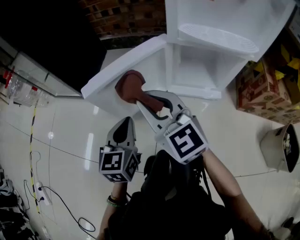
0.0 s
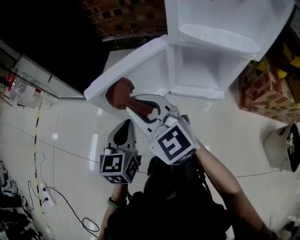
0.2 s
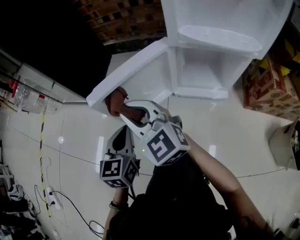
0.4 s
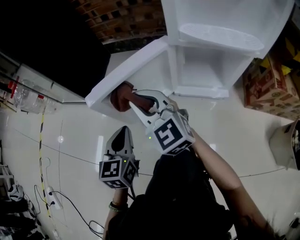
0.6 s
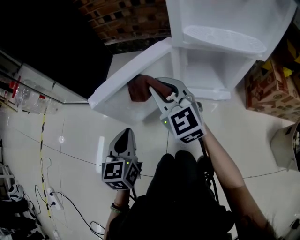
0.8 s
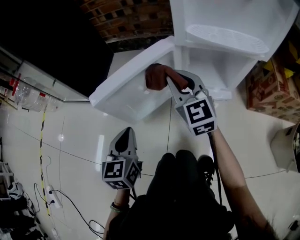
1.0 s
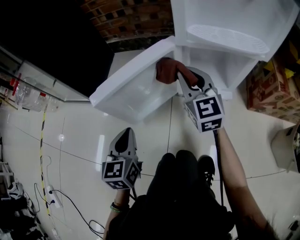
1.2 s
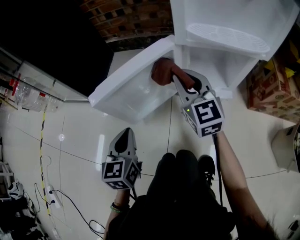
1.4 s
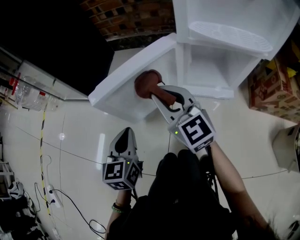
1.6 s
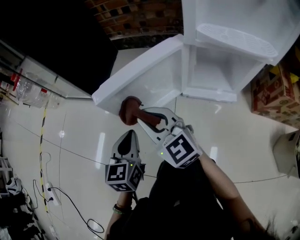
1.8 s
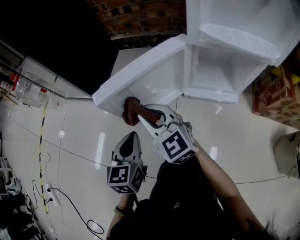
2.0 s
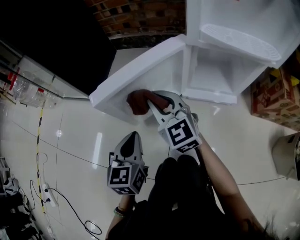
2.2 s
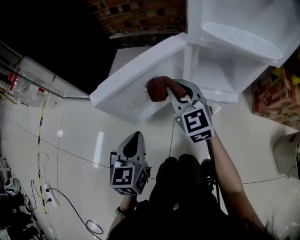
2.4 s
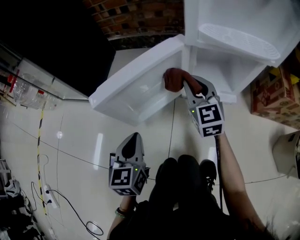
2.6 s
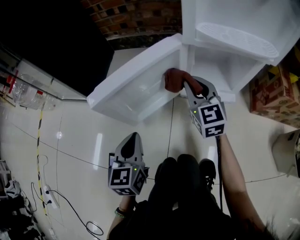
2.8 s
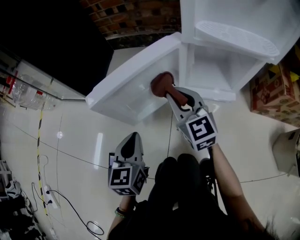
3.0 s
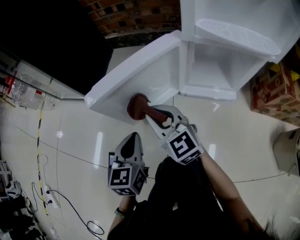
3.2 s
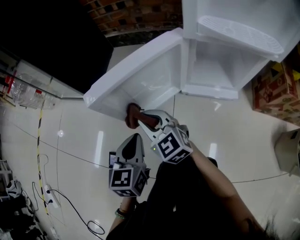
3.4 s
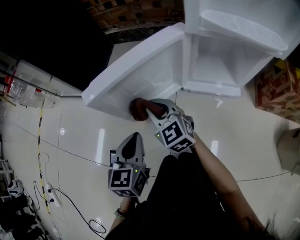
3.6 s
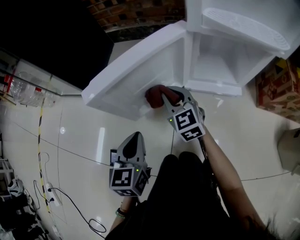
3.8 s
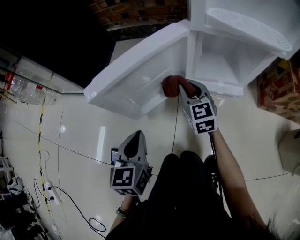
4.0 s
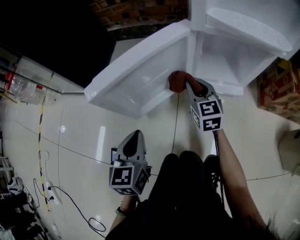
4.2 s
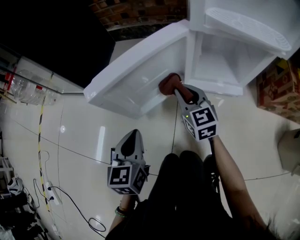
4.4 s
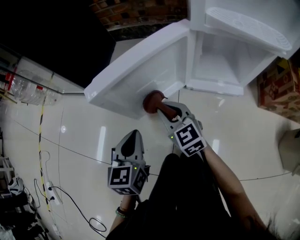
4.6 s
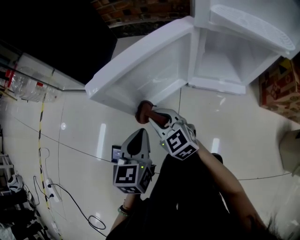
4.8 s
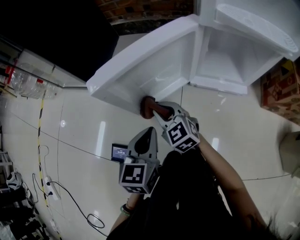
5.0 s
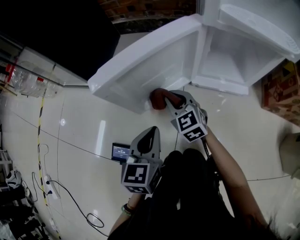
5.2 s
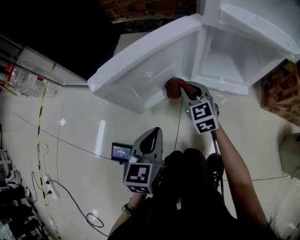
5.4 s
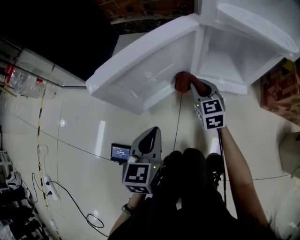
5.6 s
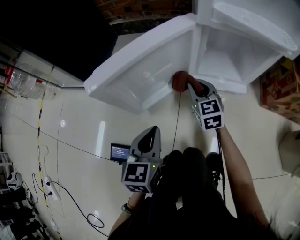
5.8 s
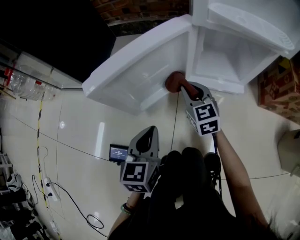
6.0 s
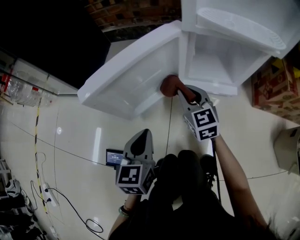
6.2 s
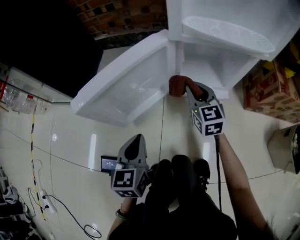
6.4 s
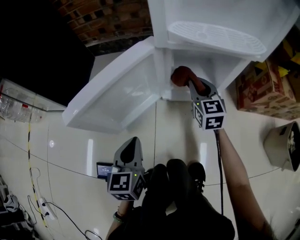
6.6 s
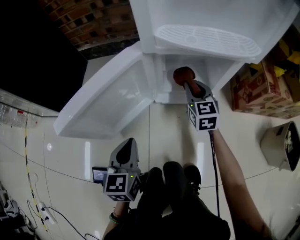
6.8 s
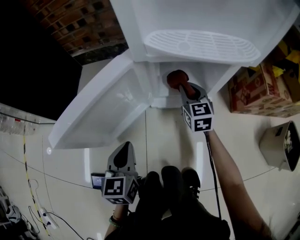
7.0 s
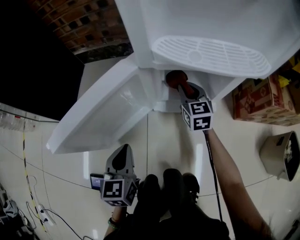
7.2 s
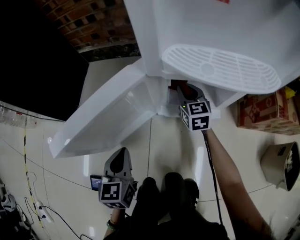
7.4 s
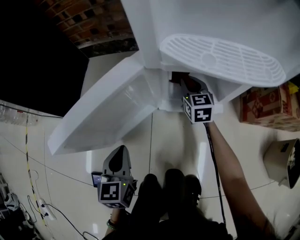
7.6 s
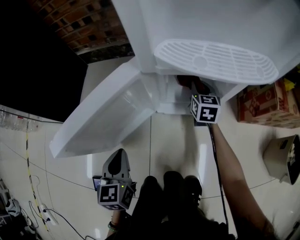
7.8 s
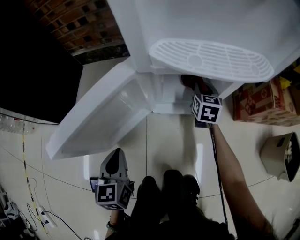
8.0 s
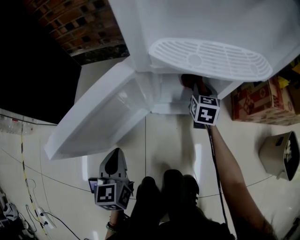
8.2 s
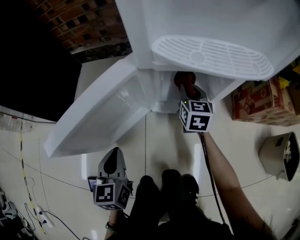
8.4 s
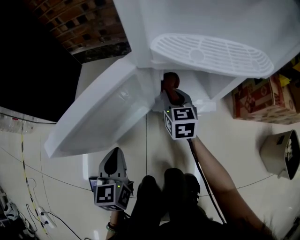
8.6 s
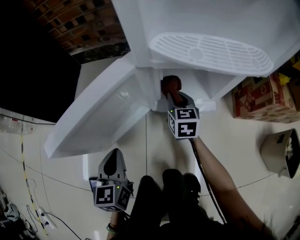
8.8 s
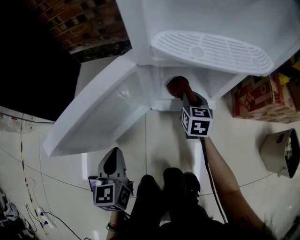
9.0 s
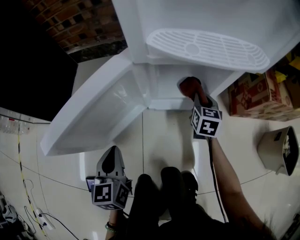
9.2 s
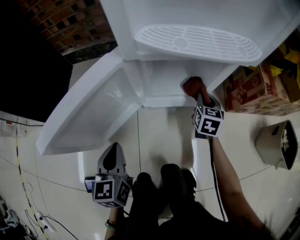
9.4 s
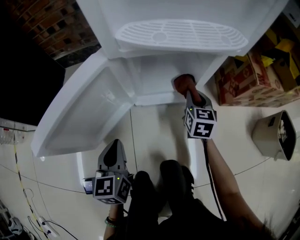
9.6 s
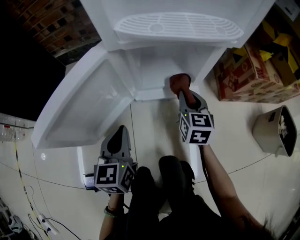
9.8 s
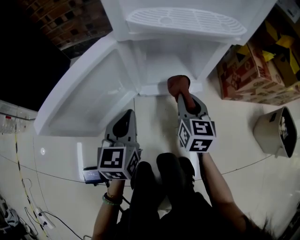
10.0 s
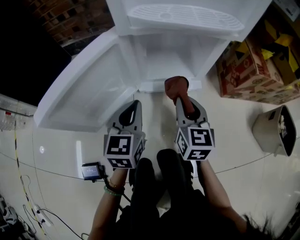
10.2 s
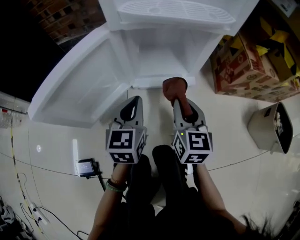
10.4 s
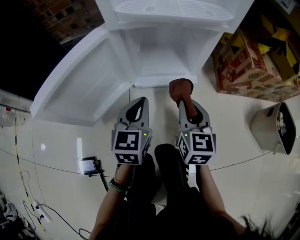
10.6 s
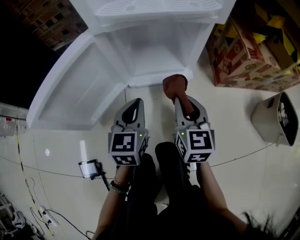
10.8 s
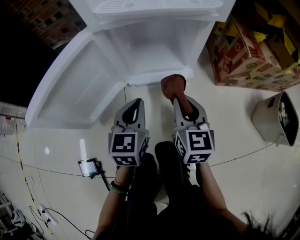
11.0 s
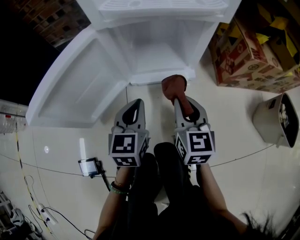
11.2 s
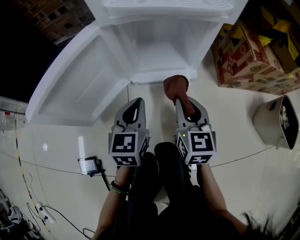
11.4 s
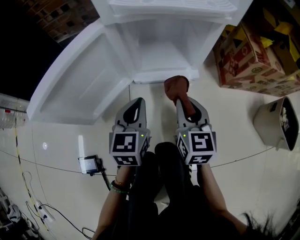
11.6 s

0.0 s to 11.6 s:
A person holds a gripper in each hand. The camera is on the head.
0.0 to 1.4 s: The right gripper heads to the right and forward, covering some 15 cm.
1.4 to 2.8 s: The right gripper moves downward, roughly 5 cm, and travels to the left and back again, approximately 15 cm each way.
2.8 to 4.4 s: The right gripper goes left and right, about 20 cm each way, reversing 2 times.
4.4 to 5.8 s: The left gripper goes about 5 cm to the right; the right gripper goes to the left and returns, about 15 cm each way.
5.8 to 7.2 s: The right gripper travels to the right and forward by approximately 15 cm, while the left gripper heads forward, covering about 5 cm.
7.2 to 8.8 s: The right gripper moves about 10 cm to the right and comes back.
8.8 to 10.2 s: The right gripper shifts approximately 20 cm backward, to the right and upward. Meanwhile the left gripper goes about 15 cm to the right and forward, and swivels approximately 20 degrees.
10.2 to 11.6 s: The grippers make only small movements.

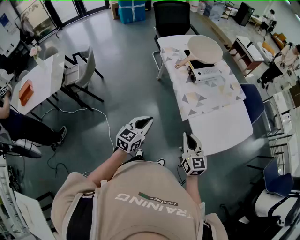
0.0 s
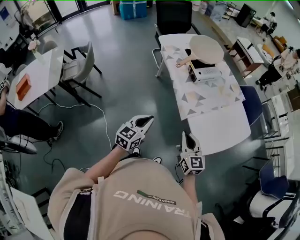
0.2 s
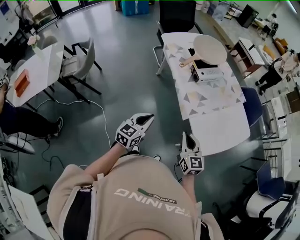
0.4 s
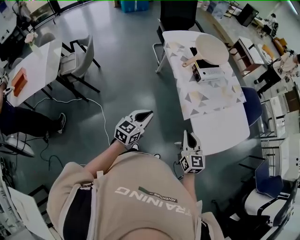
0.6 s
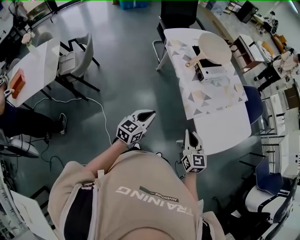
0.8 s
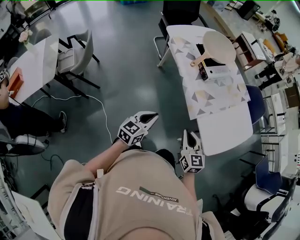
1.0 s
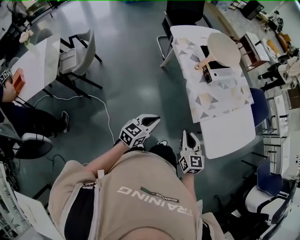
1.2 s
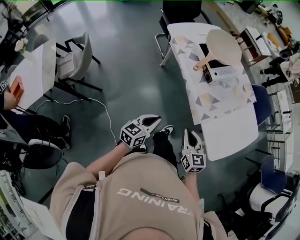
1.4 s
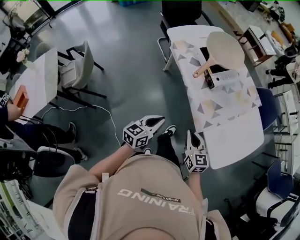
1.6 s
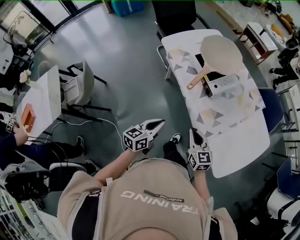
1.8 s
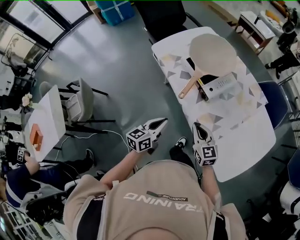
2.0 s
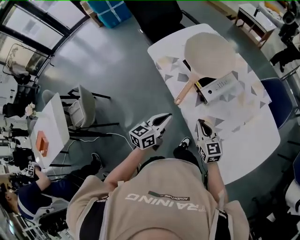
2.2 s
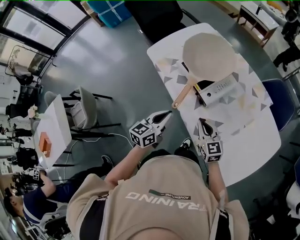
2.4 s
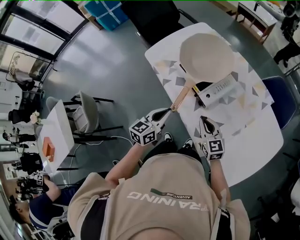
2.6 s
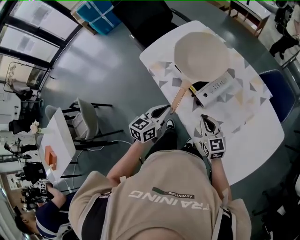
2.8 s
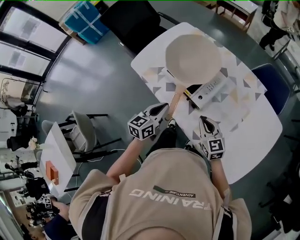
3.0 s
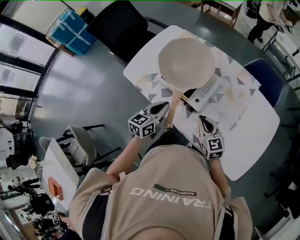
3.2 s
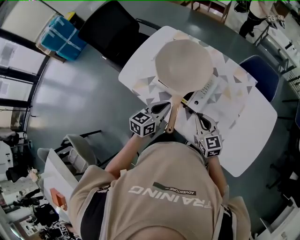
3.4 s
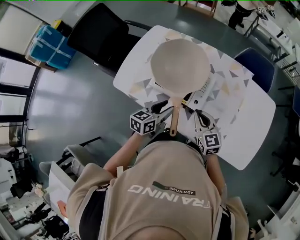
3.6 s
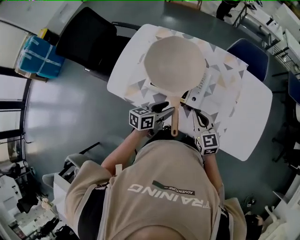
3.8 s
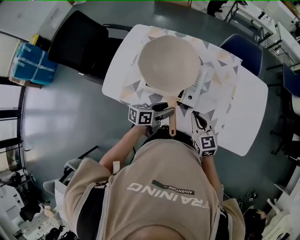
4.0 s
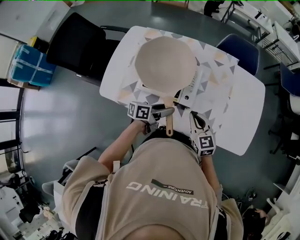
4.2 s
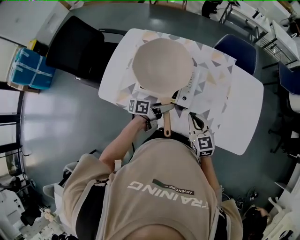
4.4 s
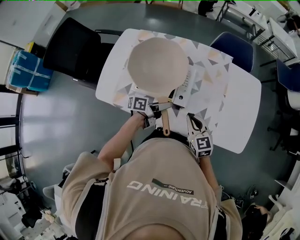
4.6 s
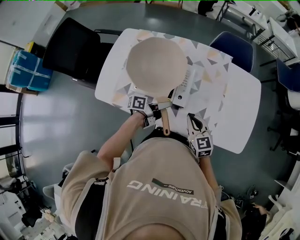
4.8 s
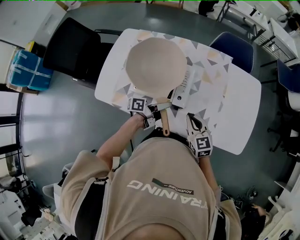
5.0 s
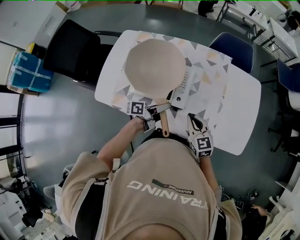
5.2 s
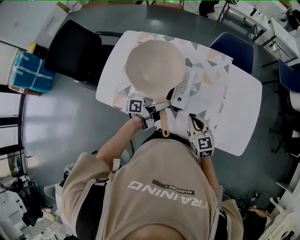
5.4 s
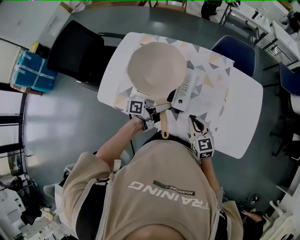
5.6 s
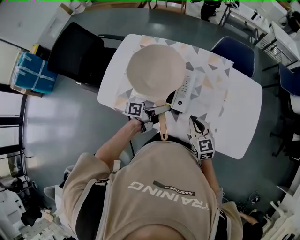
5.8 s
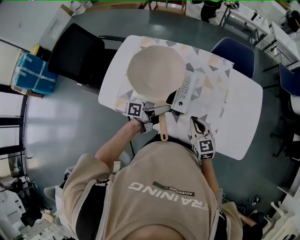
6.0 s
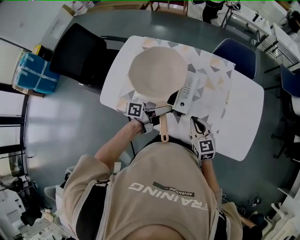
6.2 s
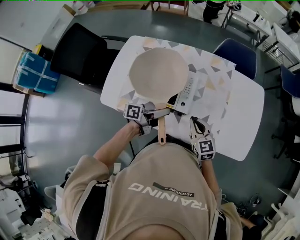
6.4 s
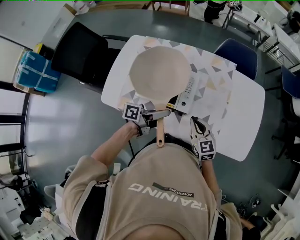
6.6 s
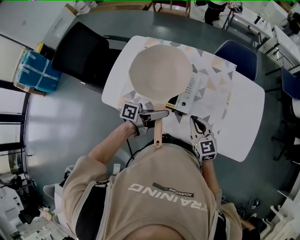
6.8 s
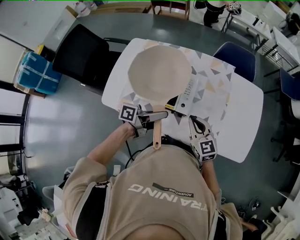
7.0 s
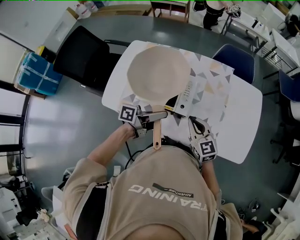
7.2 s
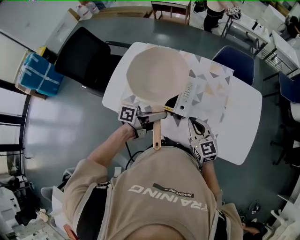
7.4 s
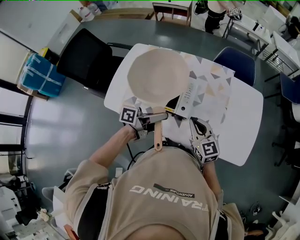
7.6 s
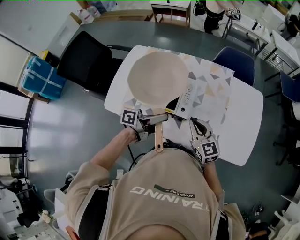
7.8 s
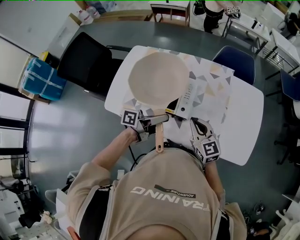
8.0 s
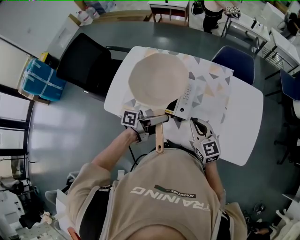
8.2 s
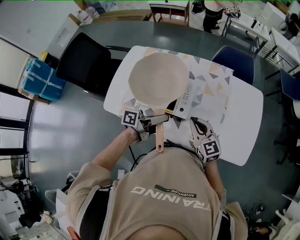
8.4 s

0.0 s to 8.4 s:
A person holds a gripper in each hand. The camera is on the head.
0.0 to 1.4 s: The grippers both shift to the left, forward and downward by some 15 cm.
1.4 to 2.8 s: Both grippers travel together forward, some 35 cm.
2.8 to 4.2 s: The right gripper shifts by approximately 5 cm, and turns by approximately 30 degrees. The left gripper shifts by some 15 cm, swivels roughly 60 degrees, and opens up.
4.2 to 5.6 s: The left gripper changes place by approximately 5 cm.
5.6 to 7.0 s: The left gripper is displaced upward by roughly 10 cm.
7.0 to 8.4 s: There are only small adjustments of the grippers.

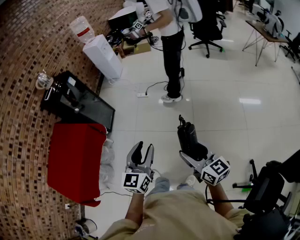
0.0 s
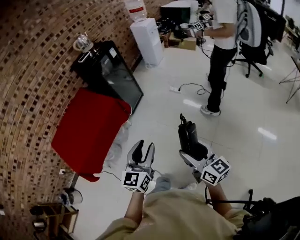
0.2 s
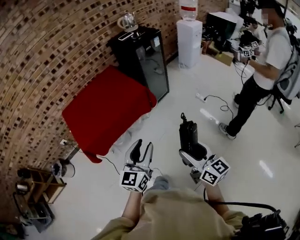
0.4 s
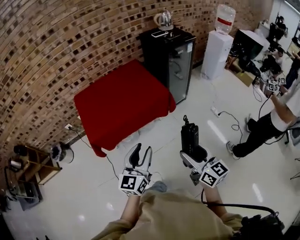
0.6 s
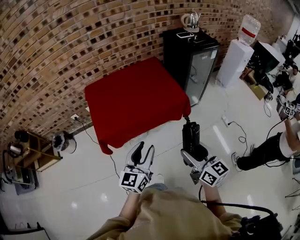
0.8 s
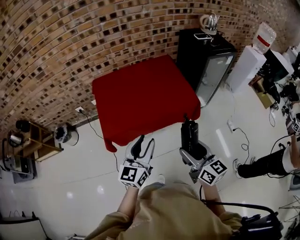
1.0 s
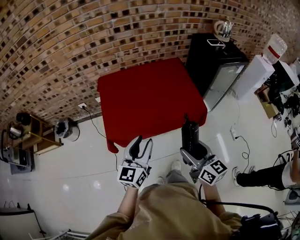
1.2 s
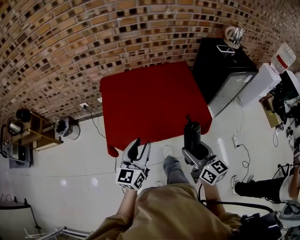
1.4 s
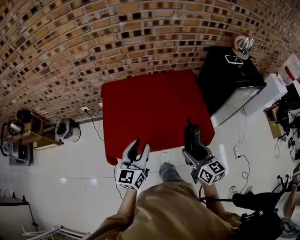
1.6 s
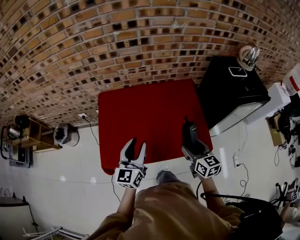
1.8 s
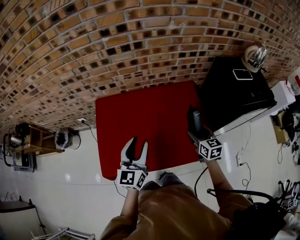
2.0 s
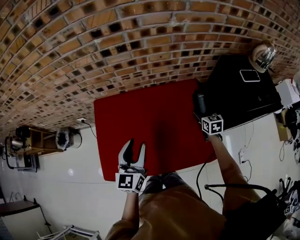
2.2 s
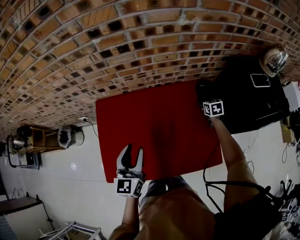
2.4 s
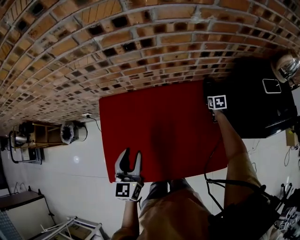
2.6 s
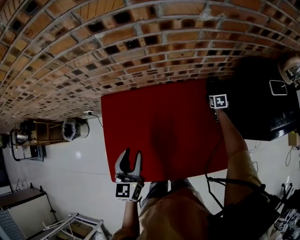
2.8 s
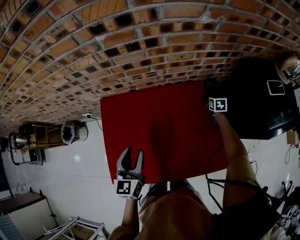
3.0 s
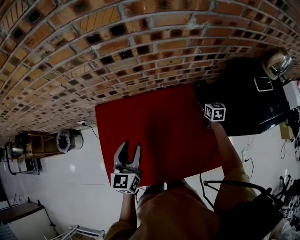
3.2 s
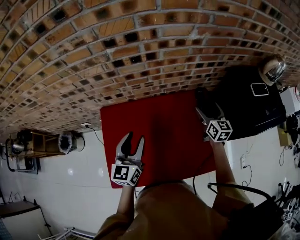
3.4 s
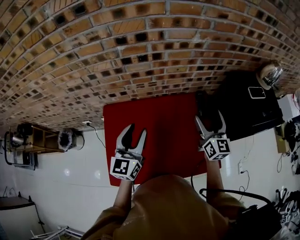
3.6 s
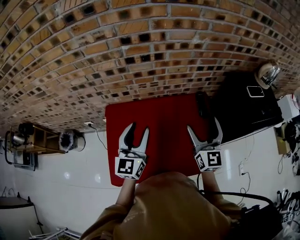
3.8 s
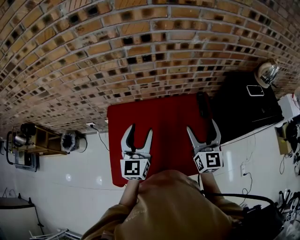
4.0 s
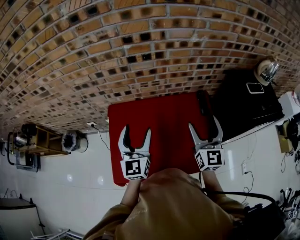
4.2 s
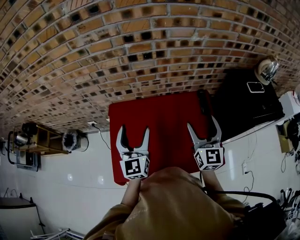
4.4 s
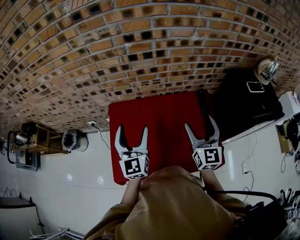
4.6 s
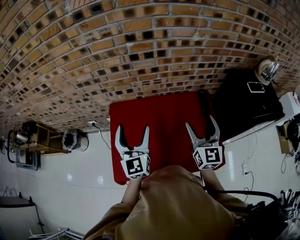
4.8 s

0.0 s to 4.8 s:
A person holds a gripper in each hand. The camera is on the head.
0.0 to 1.6 s: The two grippers travel together, roughly 1 m. The right gripper turns by approximately 50 degrees, while the left gripper rotates some 60 degrees.
1.6 to 3.2 s: The left gripper heads forward, covering about 35 cm. Meanwhile the right gripper is displaced forward and downward by roughly 60 cm, swivels about 30 degrees, and opens its fingers.
3.2 to 4.8 s: The left gripper heads upward, covering roughly 20 cm, rotates approximately 30 degrees, and opens its fingers; the right gripper shifts about 50 cm upward and backward, and tilts its fingers roughly 40 degrees upward.
